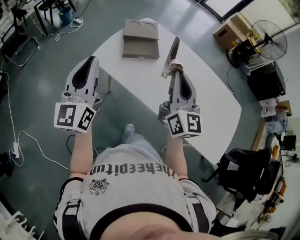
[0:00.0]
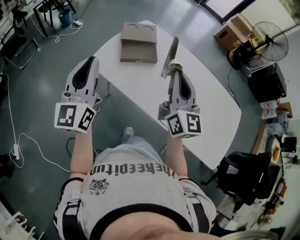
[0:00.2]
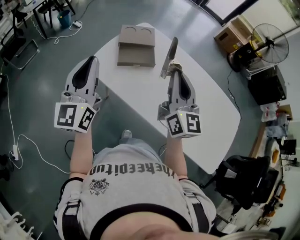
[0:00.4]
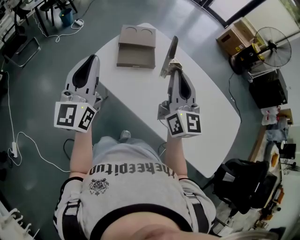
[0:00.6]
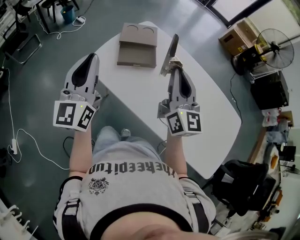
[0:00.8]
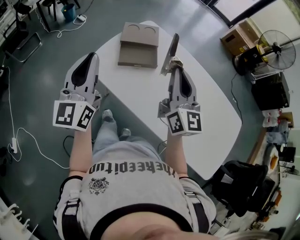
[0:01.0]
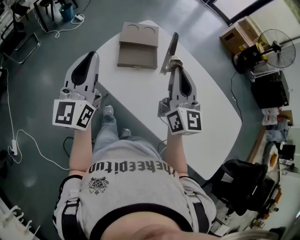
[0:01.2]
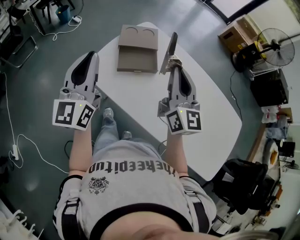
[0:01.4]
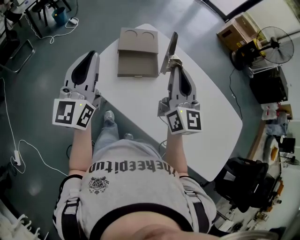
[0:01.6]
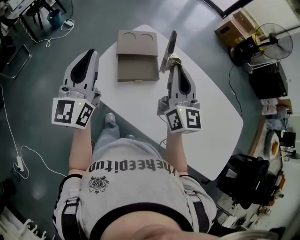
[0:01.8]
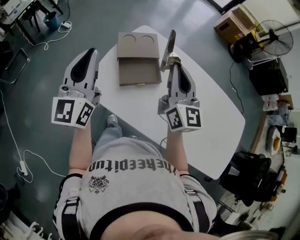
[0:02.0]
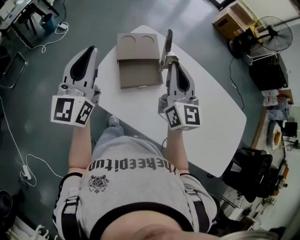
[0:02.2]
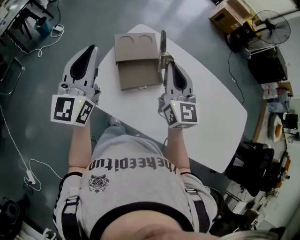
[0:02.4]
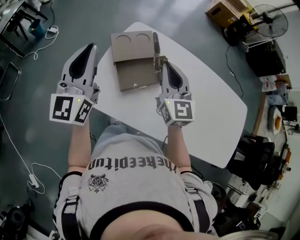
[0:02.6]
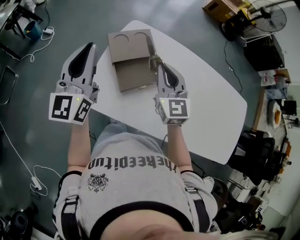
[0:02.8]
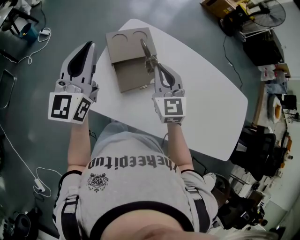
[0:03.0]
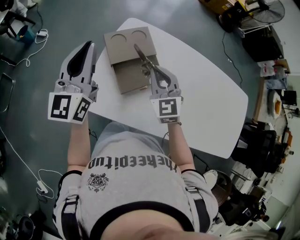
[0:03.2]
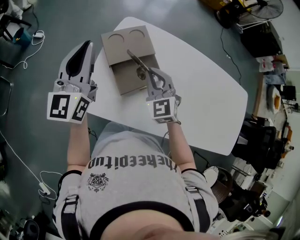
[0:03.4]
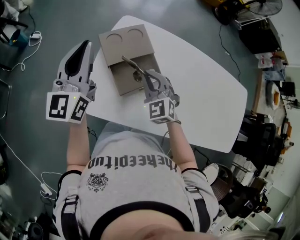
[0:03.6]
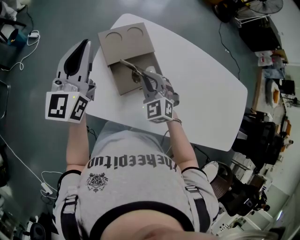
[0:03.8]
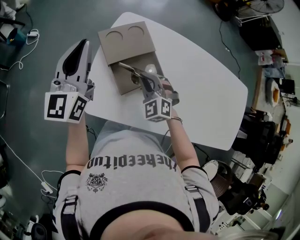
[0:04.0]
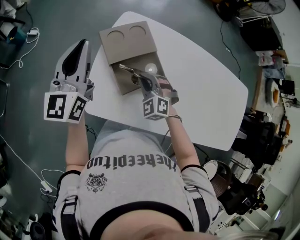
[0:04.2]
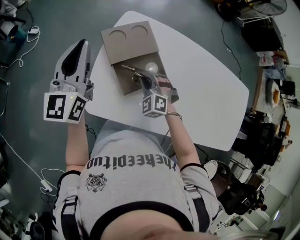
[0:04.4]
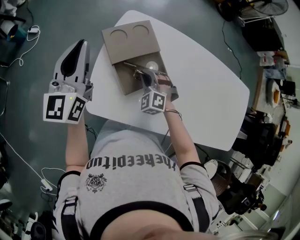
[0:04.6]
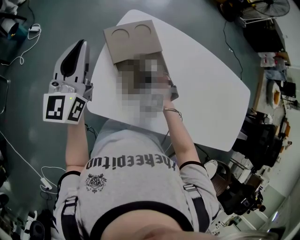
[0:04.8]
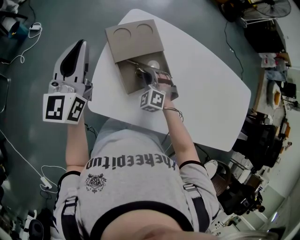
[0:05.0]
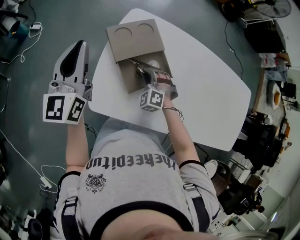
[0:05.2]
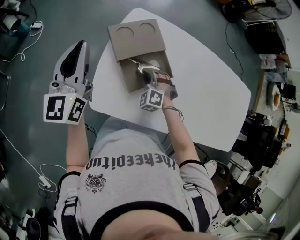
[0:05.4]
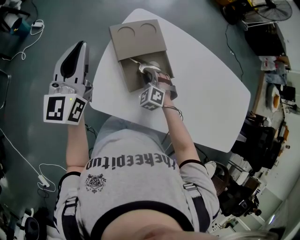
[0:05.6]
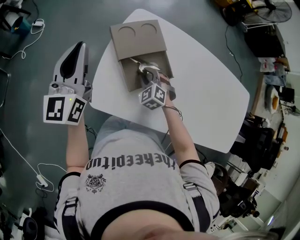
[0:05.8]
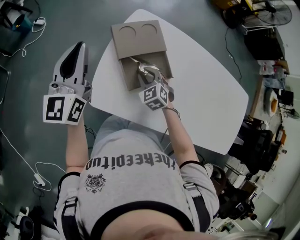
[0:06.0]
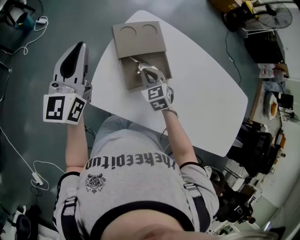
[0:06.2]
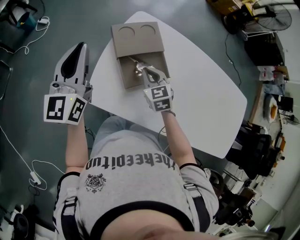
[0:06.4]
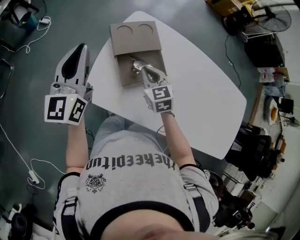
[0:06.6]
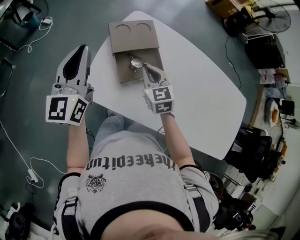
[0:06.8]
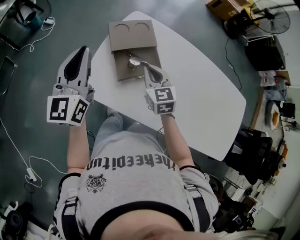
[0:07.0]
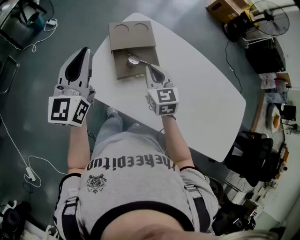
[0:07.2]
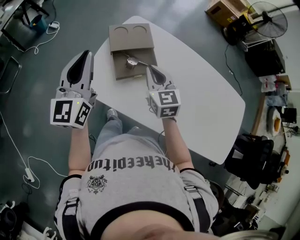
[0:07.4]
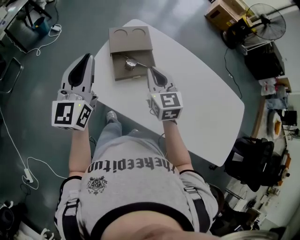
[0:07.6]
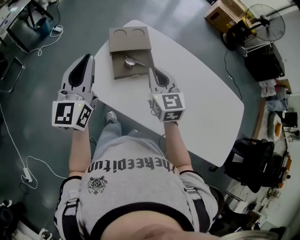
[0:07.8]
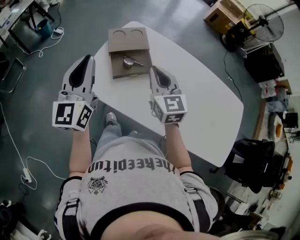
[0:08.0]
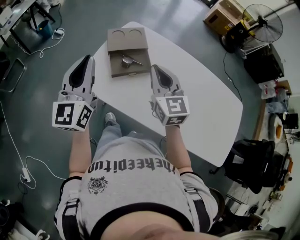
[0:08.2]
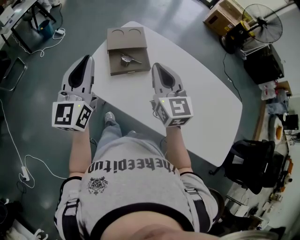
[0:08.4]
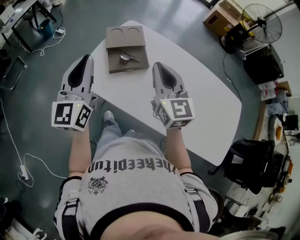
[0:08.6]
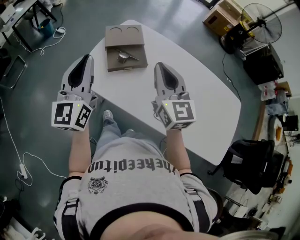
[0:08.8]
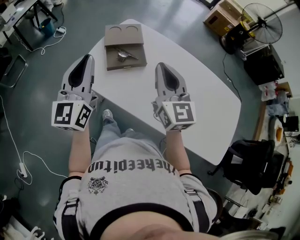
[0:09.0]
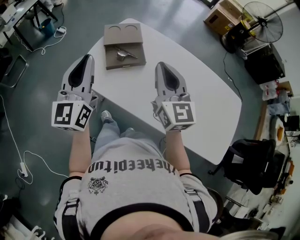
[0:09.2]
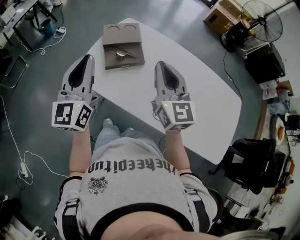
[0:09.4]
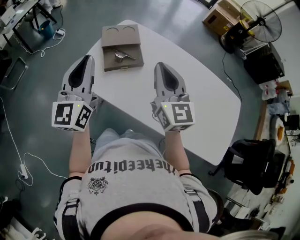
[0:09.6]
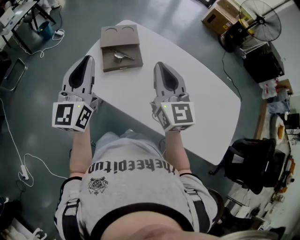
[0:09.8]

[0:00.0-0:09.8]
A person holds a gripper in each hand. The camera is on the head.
0:00.0 to 0:01.4: The two grippers go about 15 cm forward.
0:01.4 to 0:02.8: The right gripper travels forward, downward and to the left by approximately 20 cm, and turns by approximately 30 degrees. The left gripper shifts some 25 cm forward.
0:02.8 to 0:04.2: The left gripper goes approximately 10 cm forward and downward; the right gripper travels downward by some 20 cm, and tips its fingers downward by approximately 30 degrees.
0:04.2 to 0:05.6: The left gripper shifts by some 5 cm. Meanwhile the right gripper goes roughly 10 cm downward.
0:05.6 to 0:07.0: The left gripper is displaced backward and to the right by some 15 cm. The right gripper goes roughly 15 cm upward, and twists about 40 degrees clockwise, seen from behind.
0:07.0 to 0:08.4: The left gripper travels backward by approximately 15 cm. Meanwhile the right gripper goes some 20 cm upward, backward and to the right, and rotates roughly 20 degrees.
0:08.4 to 0:09.8: The two grippers go approximately 5 cm to the right.

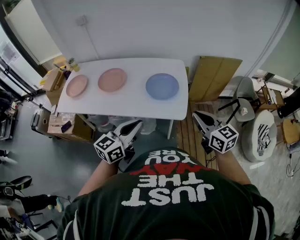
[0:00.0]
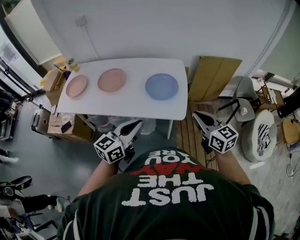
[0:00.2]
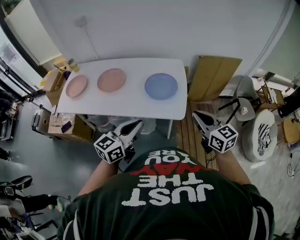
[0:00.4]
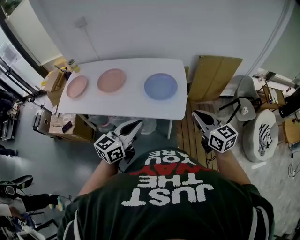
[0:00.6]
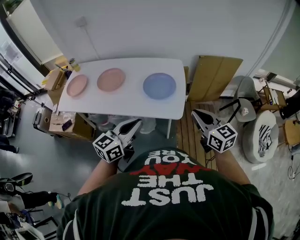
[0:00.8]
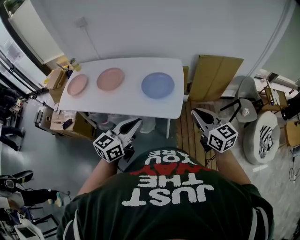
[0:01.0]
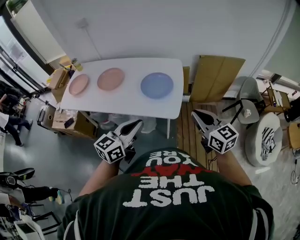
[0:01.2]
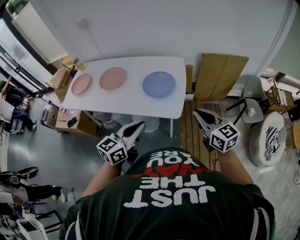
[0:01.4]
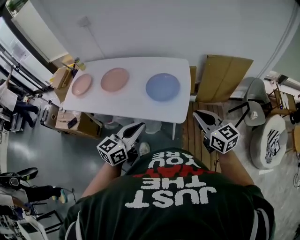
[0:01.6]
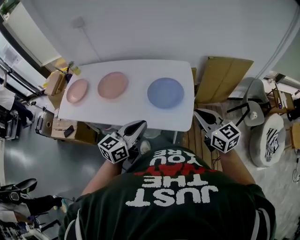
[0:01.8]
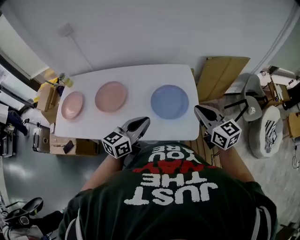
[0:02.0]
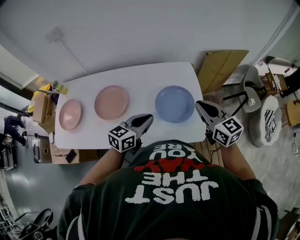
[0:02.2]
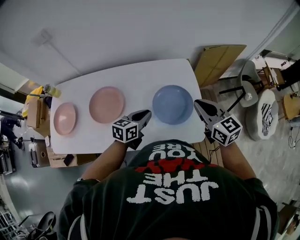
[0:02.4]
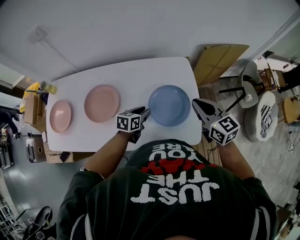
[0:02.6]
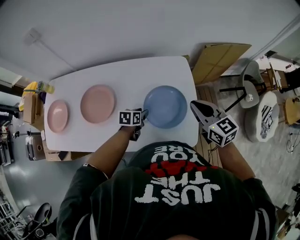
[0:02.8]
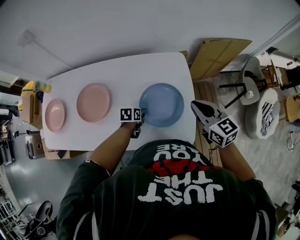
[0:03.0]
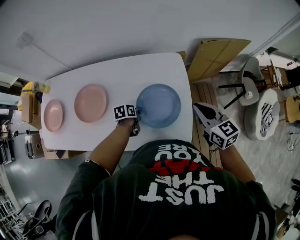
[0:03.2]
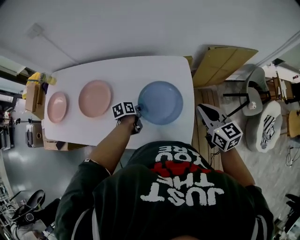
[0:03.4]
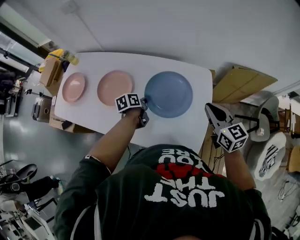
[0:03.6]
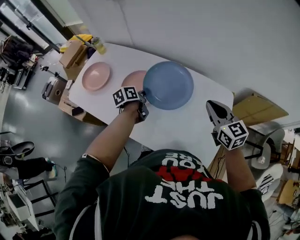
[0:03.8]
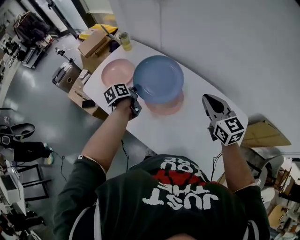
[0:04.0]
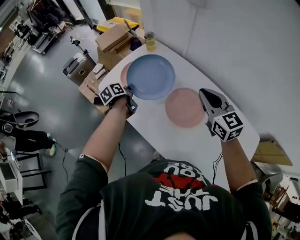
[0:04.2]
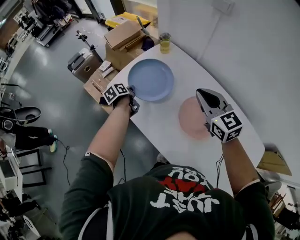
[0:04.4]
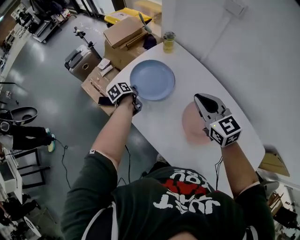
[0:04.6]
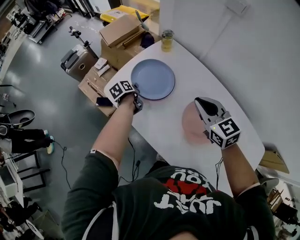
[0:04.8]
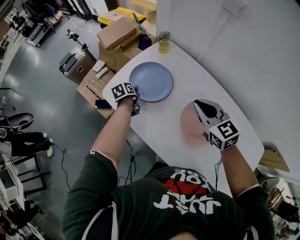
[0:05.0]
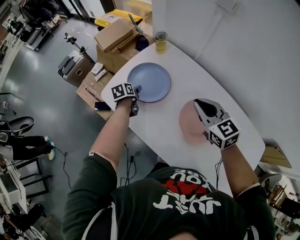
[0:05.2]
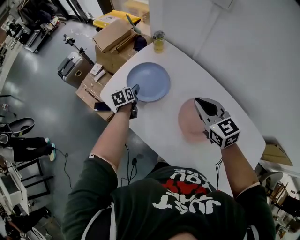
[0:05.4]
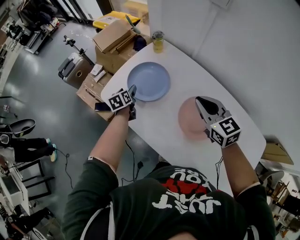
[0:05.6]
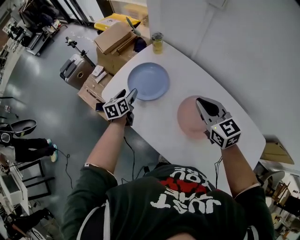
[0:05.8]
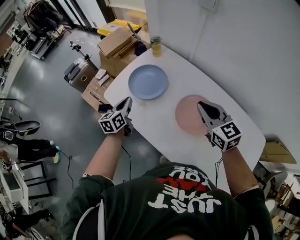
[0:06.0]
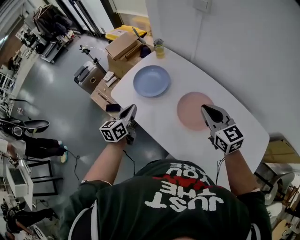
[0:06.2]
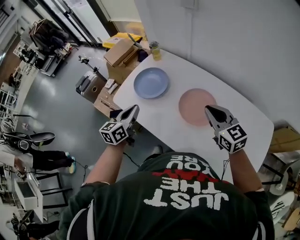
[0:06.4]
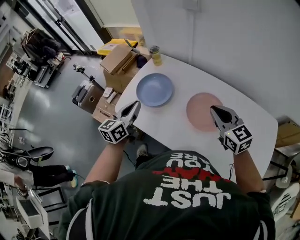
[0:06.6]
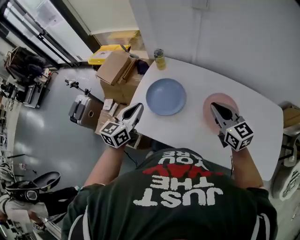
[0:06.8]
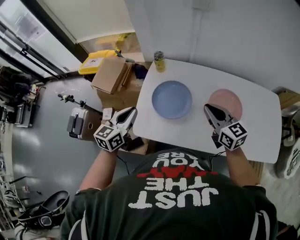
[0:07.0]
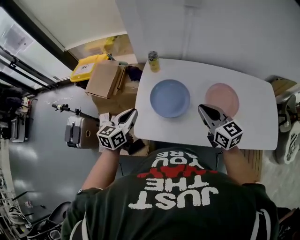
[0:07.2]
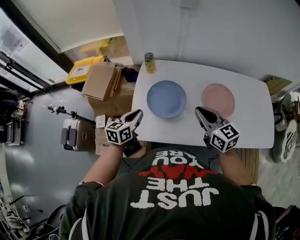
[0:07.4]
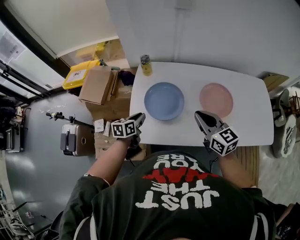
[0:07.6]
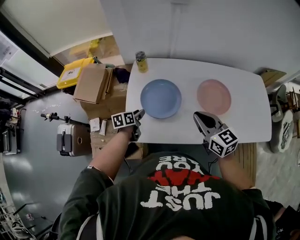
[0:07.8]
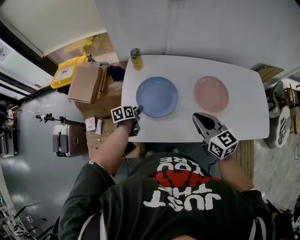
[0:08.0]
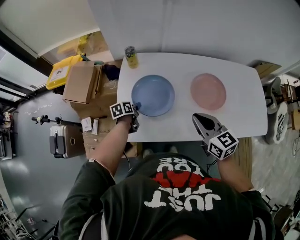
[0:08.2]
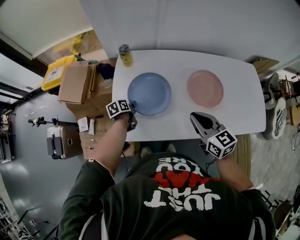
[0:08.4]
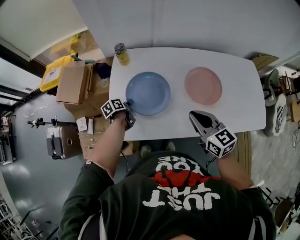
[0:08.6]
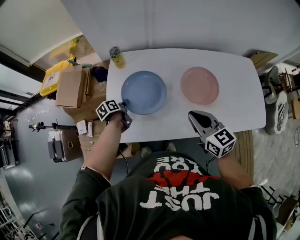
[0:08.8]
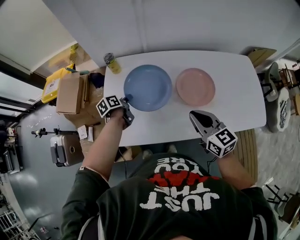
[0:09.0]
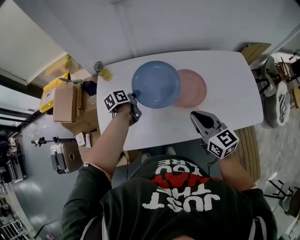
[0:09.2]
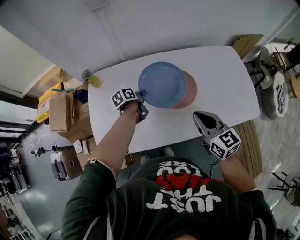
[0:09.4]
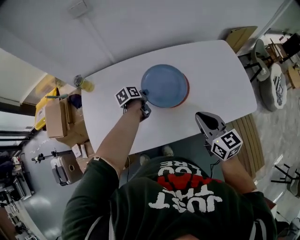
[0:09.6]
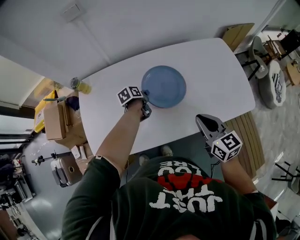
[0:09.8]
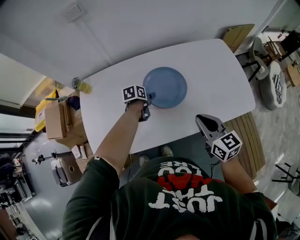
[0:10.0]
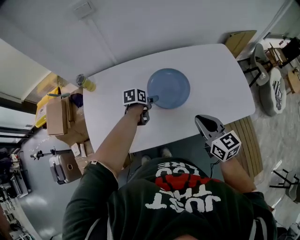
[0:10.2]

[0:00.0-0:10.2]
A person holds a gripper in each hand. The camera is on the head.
0:00.0 to 0:01.4: Both grippers travel together to the right, about 10 cm.
0:01.4 to 0:03.0: The right gripper is displaced forward and to the left by about 30 cm; the left gripper is displaced forward and downward by about 50 cm, angles its fingers downward, by about 50 degrees, and opens up.
0:03.0 to 0:04.4: The pair of grippers is taken some 70 cm. The left gripper swivels roughly 90 degrees, while the right gripper swivels approximately 50 degrees.
0:04.4 to 0:05.8: The left gripper reaches about 5 cm downward, then returns, rotates approximately 30 degrees, and opens.
0:05.8 to 0:07.2: The left gripper ends up approximately 20 cm from where it was, swivels roughly 50 degrees, and closes its fingers. Meanwhile the right gripper changes place by about 20 cm, and turns by approximately 30 degrees.
0:07.2 to 0:08.8: The left gripper heads downward and forward, covering about 25 cm, and twists about 40 degrees counterclockwise, seen from behind. The right gripper shifts about 5 cm to the right.
0:08.8 to 0:10.2: The right gripper is displaced to the right by roughly 20 cm. Meanwhile the left gripper moves to the right, roughly 35 cm, turns by approximately 40 degrees, and opens.

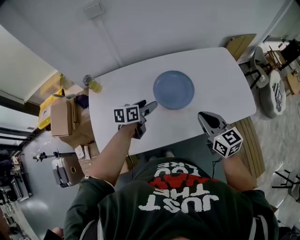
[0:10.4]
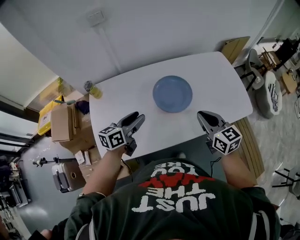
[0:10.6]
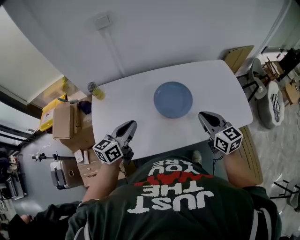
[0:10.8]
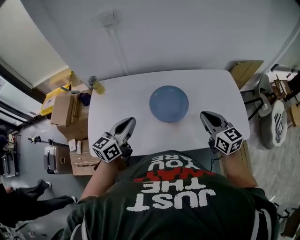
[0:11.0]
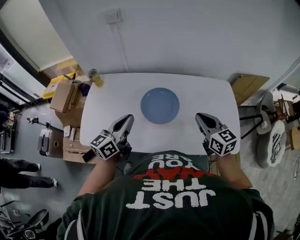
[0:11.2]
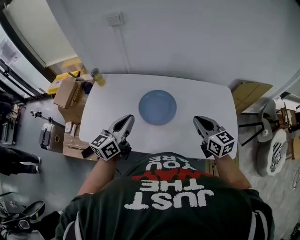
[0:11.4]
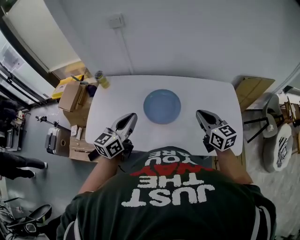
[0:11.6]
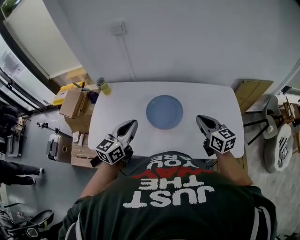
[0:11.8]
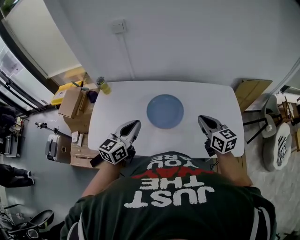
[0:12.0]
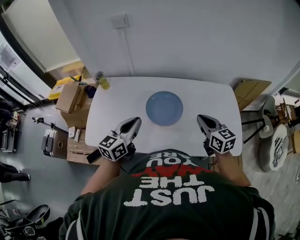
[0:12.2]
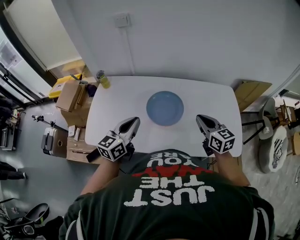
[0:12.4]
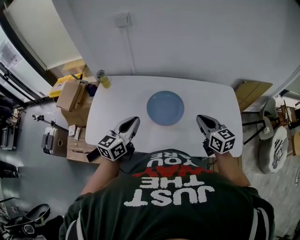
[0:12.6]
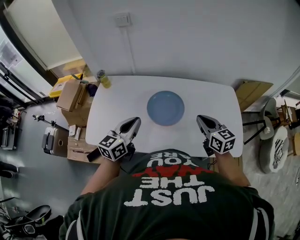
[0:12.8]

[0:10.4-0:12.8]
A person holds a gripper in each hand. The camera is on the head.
0:10.4 to 0:11.6: The right gripper changes place by some 15 cm, while the left gripper moves upward, some 20 cm, changes its angle by approximately 40 degrees, and closes up.
0:11.6 to 0:12.8: There are only small adjustments of the grippers.

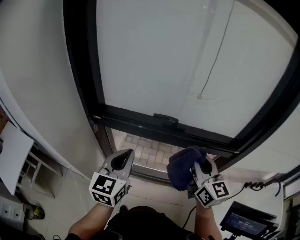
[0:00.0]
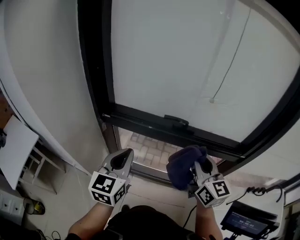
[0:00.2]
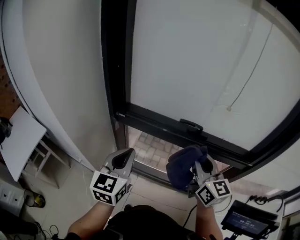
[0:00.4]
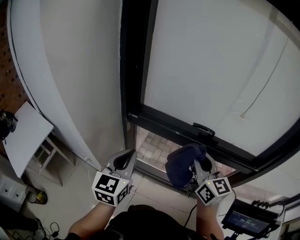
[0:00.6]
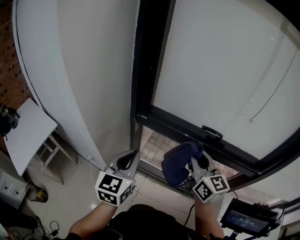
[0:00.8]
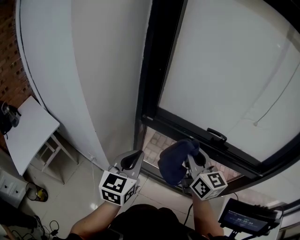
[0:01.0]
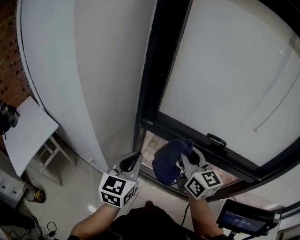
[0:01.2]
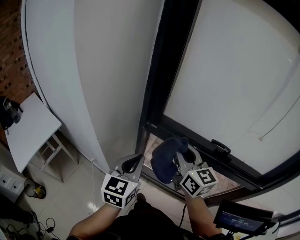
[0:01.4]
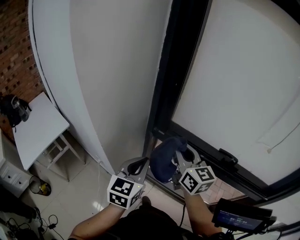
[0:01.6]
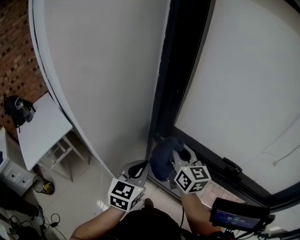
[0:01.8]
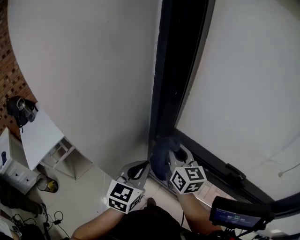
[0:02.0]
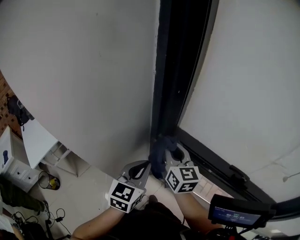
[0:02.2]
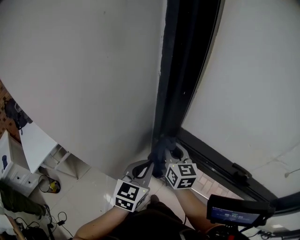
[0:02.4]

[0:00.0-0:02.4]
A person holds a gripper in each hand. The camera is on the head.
0:00.0 to 0:01.2: The grippers both shift to the left by some 25 cm. The right gripper changes its angle by approximately 20 degrees.
0:01.2 to 0:02.4: The left gripper heads forward and downward, covering about 10 cm; the right gripper travels forward, downward and to the left by some 25 cm.
